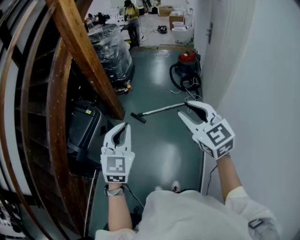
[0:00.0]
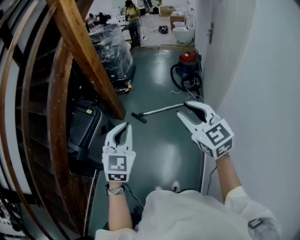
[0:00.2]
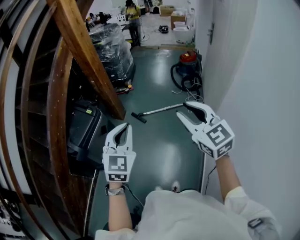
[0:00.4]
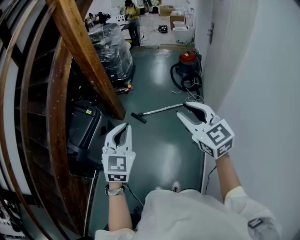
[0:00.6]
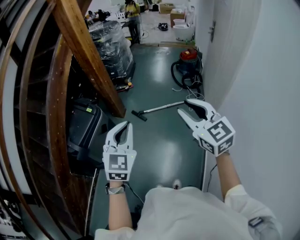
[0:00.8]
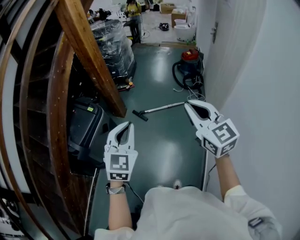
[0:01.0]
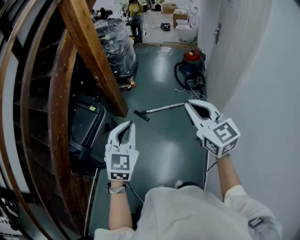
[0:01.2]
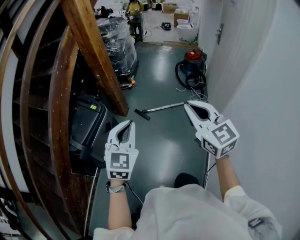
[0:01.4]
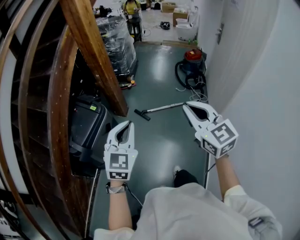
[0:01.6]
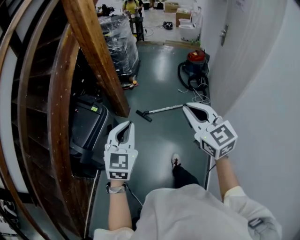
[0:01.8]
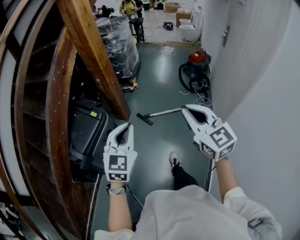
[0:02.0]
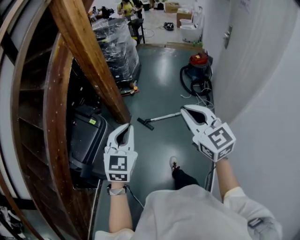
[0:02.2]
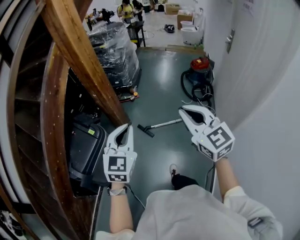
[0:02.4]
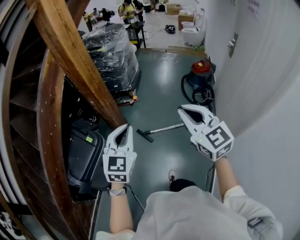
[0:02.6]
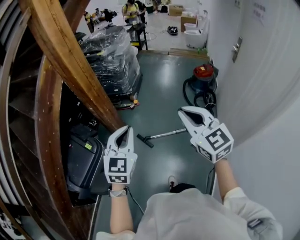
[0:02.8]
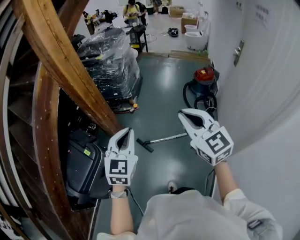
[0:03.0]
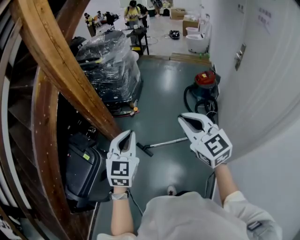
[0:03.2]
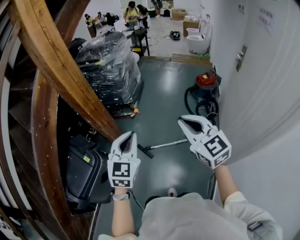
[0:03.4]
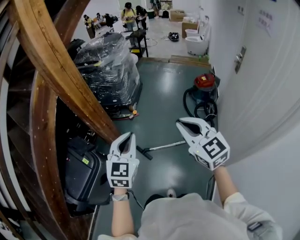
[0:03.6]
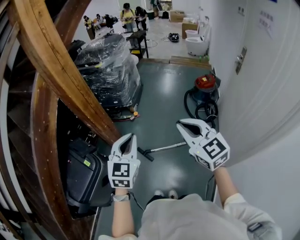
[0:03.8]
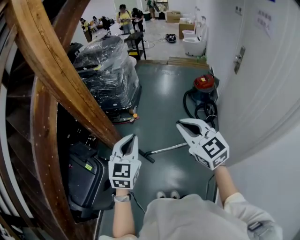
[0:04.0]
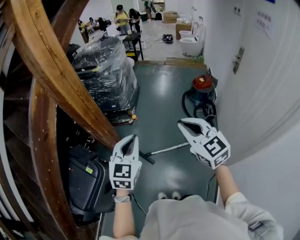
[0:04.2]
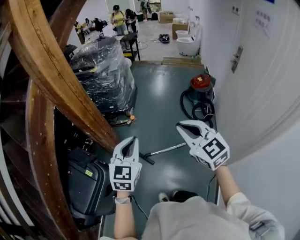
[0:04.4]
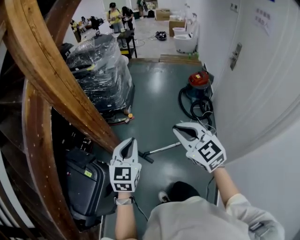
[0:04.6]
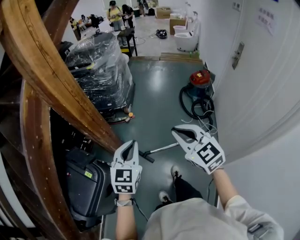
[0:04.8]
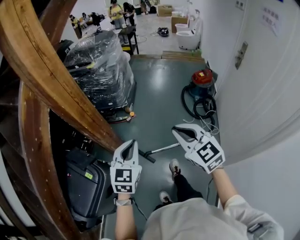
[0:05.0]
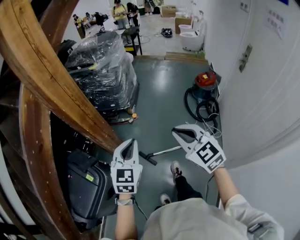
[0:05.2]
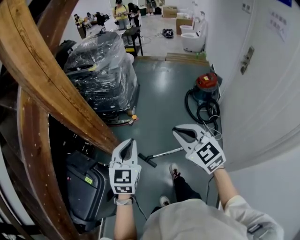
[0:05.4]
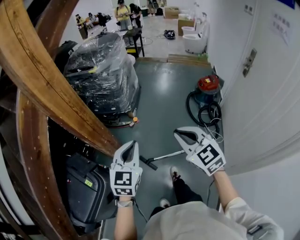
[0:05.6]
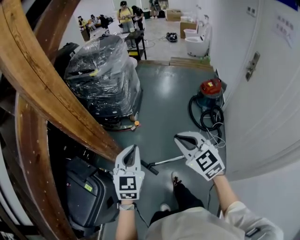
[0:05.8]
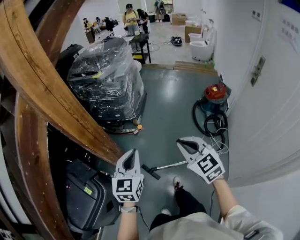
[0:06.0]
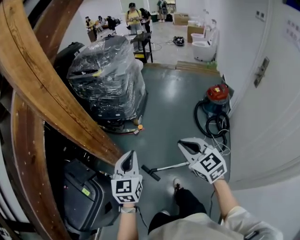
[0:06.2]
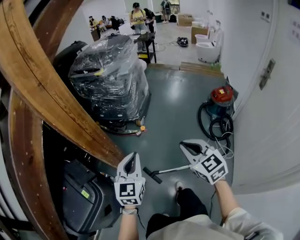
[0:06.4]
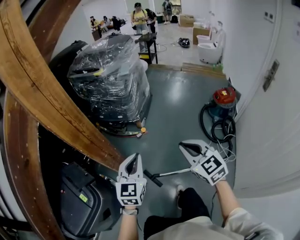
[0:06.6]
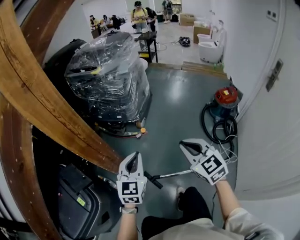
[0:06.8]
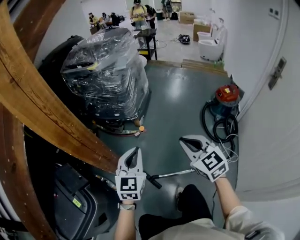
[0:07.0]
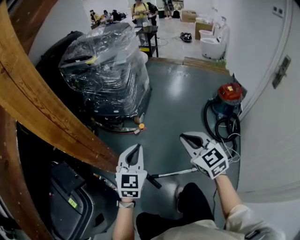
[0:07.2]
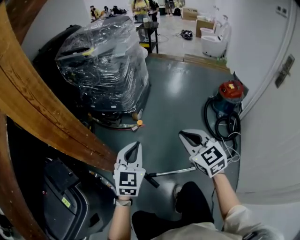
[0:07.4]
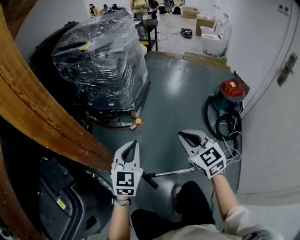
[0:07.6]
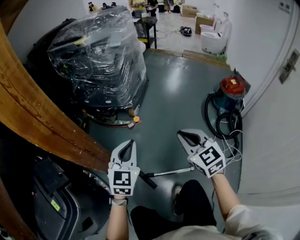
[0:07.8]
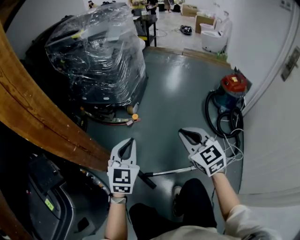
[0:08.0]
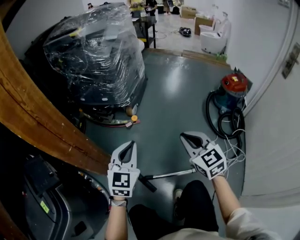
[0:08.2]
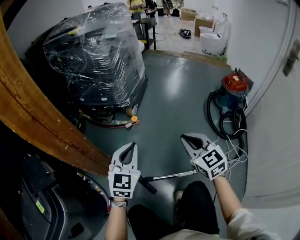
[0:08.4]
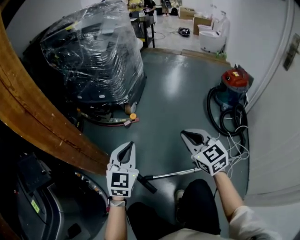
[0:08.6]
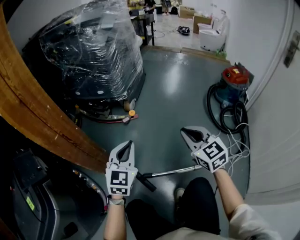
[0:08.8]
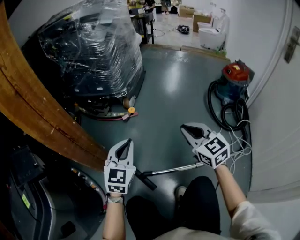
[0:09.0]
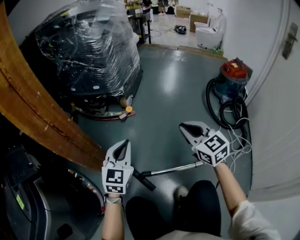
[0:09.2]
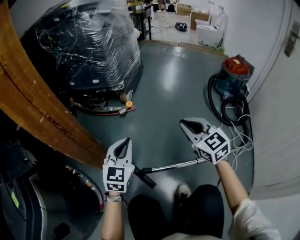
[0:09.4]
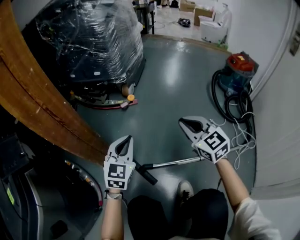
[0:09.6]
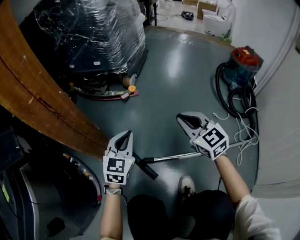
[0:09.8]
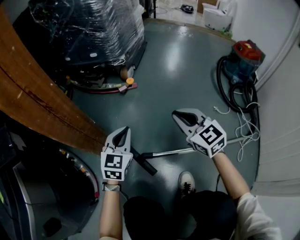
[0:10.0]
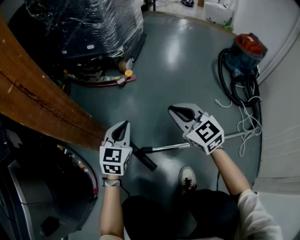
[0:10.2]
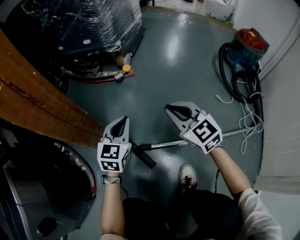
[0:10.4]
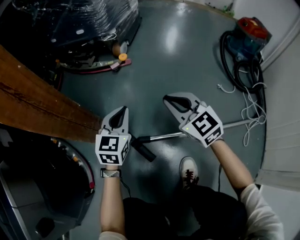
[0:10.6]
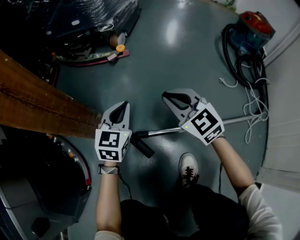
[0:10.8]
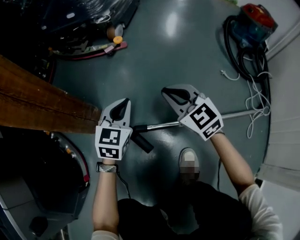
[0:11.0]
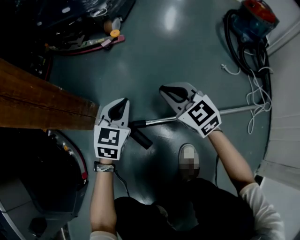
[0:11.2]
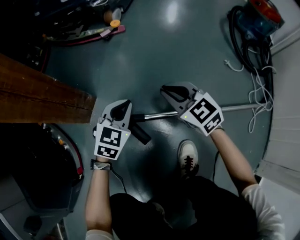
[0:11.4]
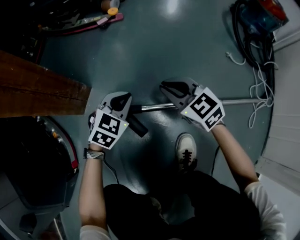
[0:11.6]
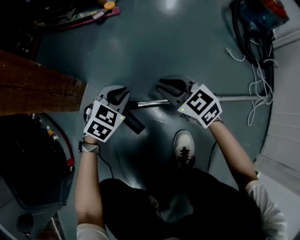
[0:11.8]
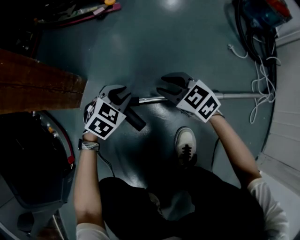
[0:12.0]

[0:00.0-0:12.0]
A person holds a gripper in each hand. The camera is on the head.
0.0 to 1.6 s: The grippers both shift to the left and forward by roughly 10 cm. The right gripper closes.
1.6 to 3.0 s: Both grippers move forward, roughly 35 cm.
3.0 to 4.4 s: Both grippers travel together forward, roughly 10 cm.
4.4 to 6.0 s: The two grippers go some 15 cm forward and downward.
6.0 to 7.6 s: Both grippers move downward and forward, about 30 cm.
7.6 to 9.0 s: The two grippers go about 25 cm downward.
9.0 to 10.4 s: The right gripper travels downward and to the left by about 20 cm. The left gripper moves downward, some 20 cm.
10.4 to 12.0 s: The two grippers go some 25 cm downward. The right gripper turns by roughly 30 degrees, and opens. Meanwhile the left gripper points its fingers some 30 degrees further downward.

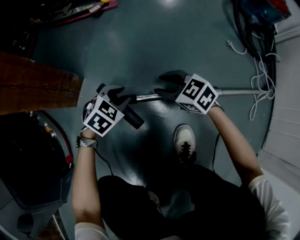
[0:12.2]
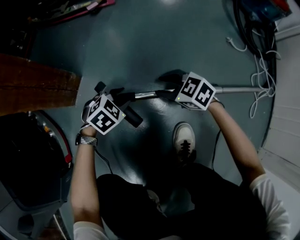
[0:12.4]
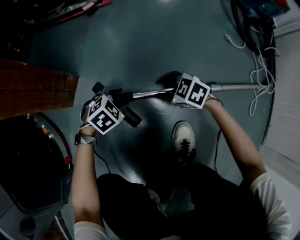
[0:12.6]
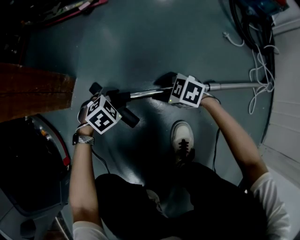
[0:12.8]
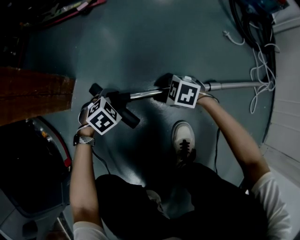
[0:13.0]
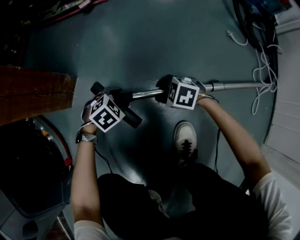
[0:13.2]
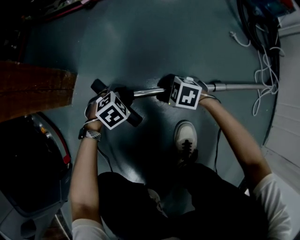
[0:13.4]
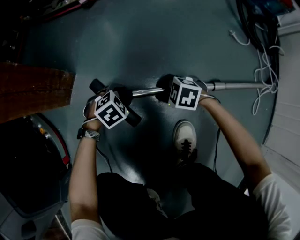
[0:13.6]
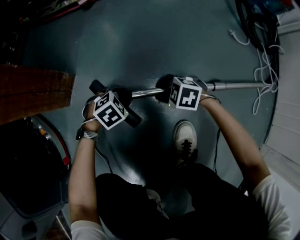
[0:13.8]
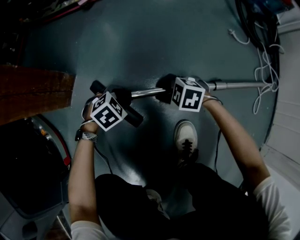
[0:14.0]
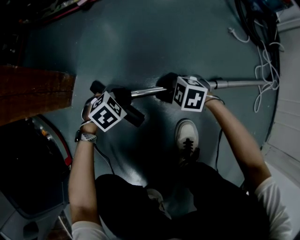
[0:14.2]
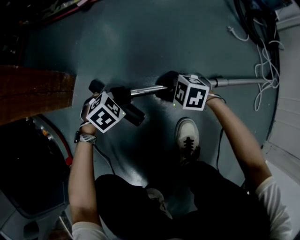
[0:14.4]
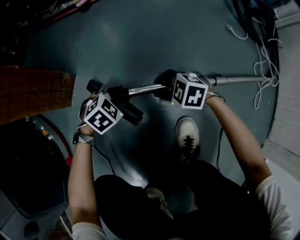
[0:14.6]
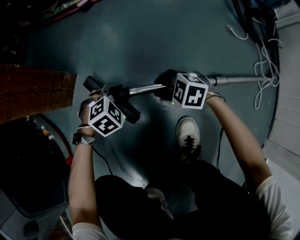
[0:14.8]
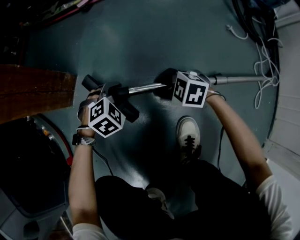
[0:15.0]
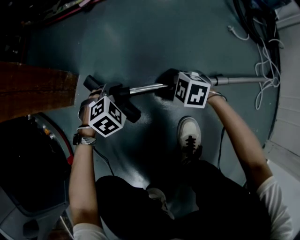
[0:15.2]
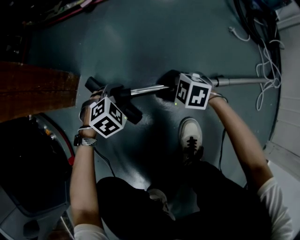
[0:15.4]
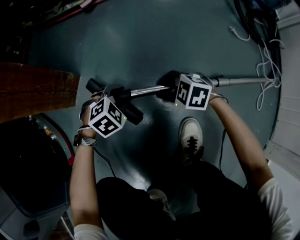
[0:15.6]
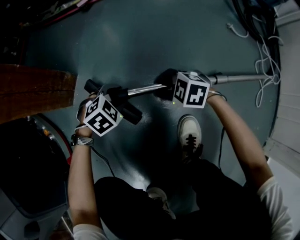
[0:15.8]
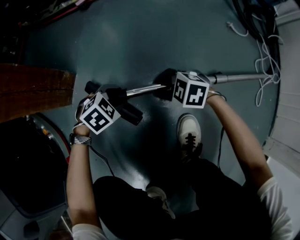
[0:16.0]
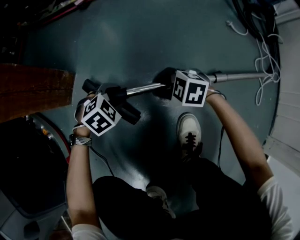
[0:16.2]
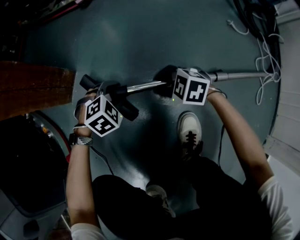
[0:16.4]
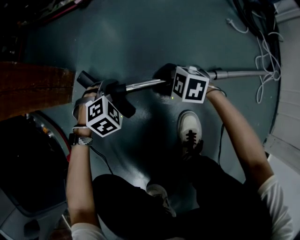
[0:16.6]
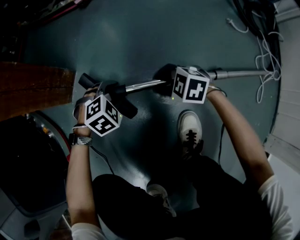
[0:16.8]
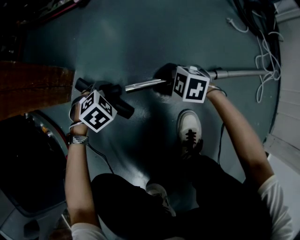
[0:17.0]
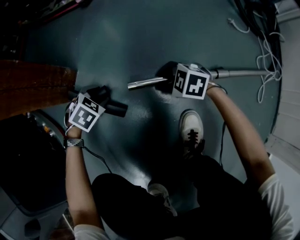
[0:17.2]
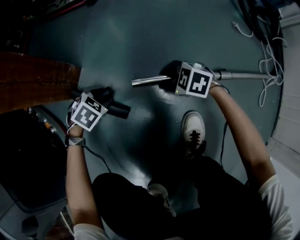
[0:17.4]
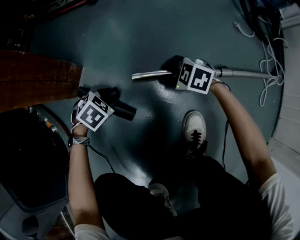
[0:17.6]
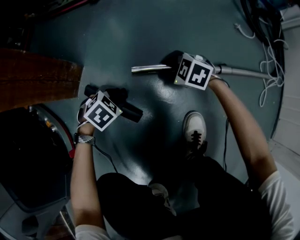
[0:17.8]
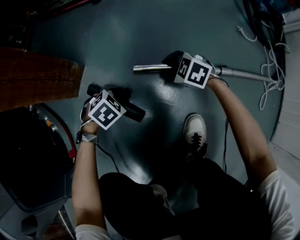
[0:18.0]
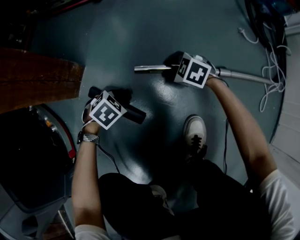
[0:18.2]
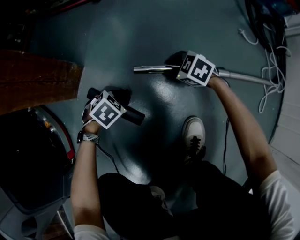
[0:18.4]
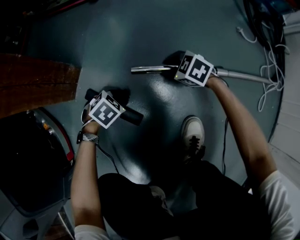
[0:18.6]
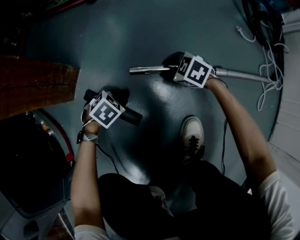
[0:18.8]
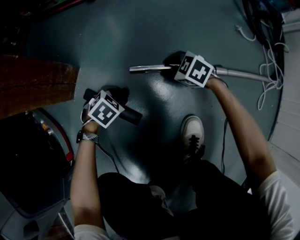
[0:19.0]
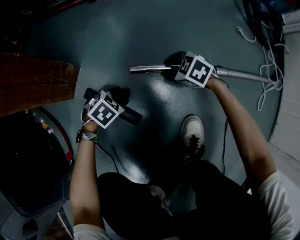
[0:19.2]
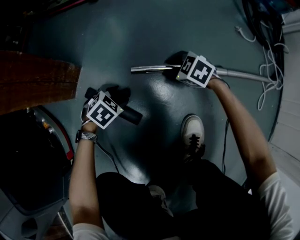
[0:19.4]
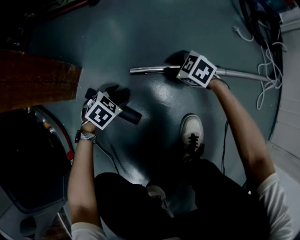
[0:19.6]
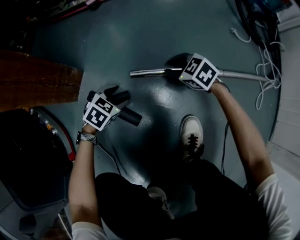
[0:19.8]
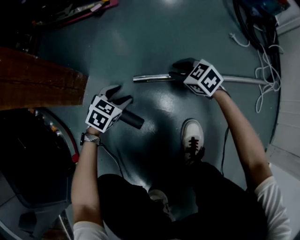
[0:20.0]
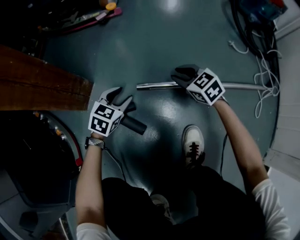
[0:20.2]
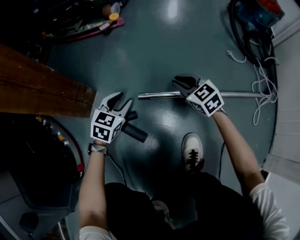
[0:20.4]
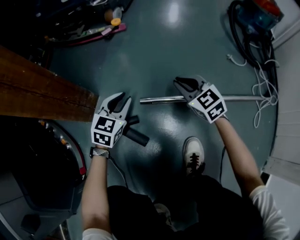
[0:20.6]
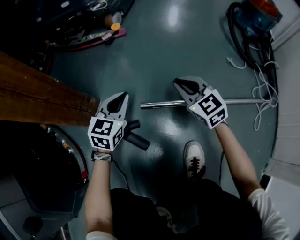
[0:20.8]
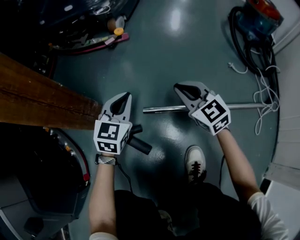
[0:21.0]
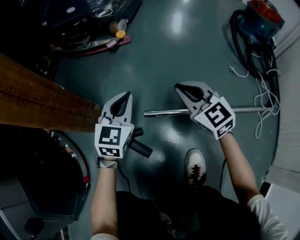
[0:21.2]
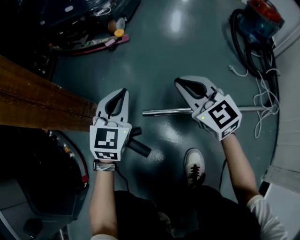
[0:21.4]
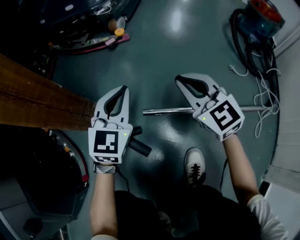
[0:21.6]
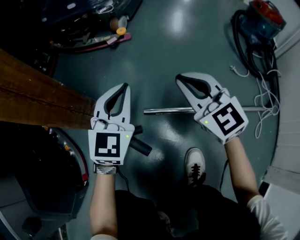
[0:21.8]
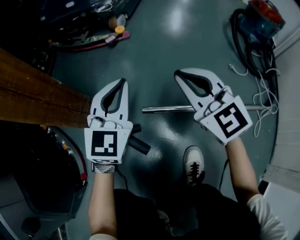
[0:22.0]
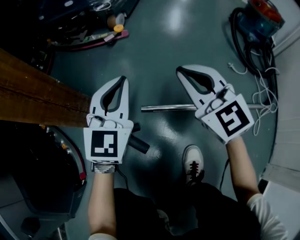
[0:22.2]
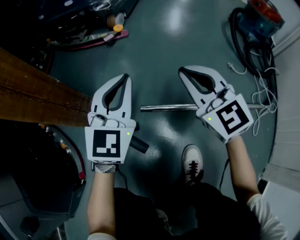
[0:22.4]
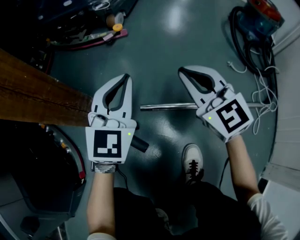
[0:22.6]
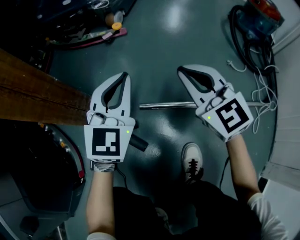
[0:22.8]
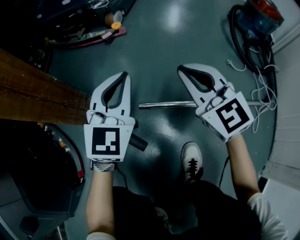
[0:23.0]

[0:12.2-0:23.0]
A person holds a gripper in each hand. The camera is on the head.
12.2 to 13.8 s: Both grippers travel together downward, about 10 cm. The right gripper swivels roughly 30 degrees.
13.8 to 15.2 s: The left gripper ends up about 5 cm from where it was.
15.2 to 16.8 s: The grippers stay close to where they were, moving slightly.
16.8 to 18.4 s: The left gripper swivels some 20 degrees; the right gripper shifts by some 10 cm.
18.4 to 20.0 s: The two grippers go about 5 cm upward. The left gripper swivels some 20 degrees.
20.0 to 21.4 s: The two grippers go about 25 cm upward. The right gripper points its fingers roughly 30 degrees further upward, and closes up; the left gripper points its fingers approximately 40 degrees further upward, and closes its fingers.
21.4 to 23.0 s: The left gripper travels upward by roughly 5 cm. The right gripper changes place by some 5 cm.

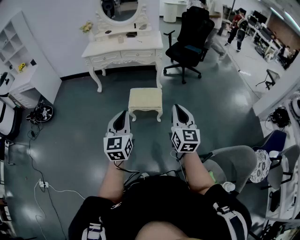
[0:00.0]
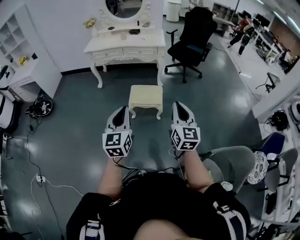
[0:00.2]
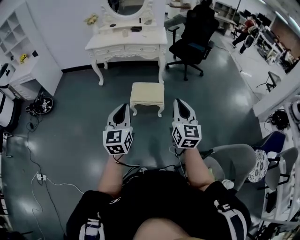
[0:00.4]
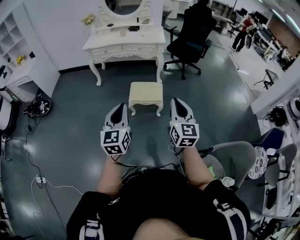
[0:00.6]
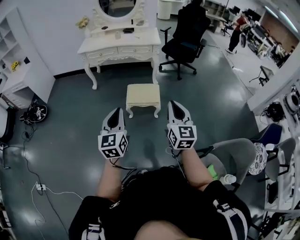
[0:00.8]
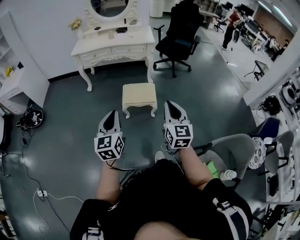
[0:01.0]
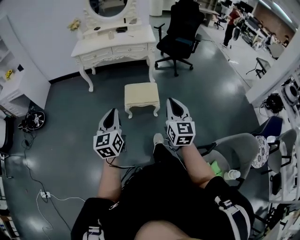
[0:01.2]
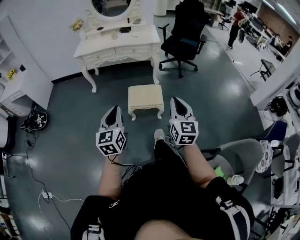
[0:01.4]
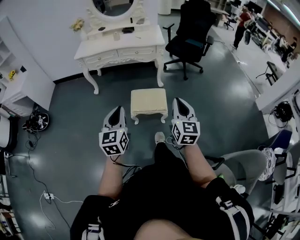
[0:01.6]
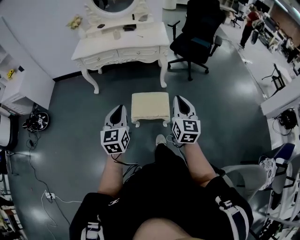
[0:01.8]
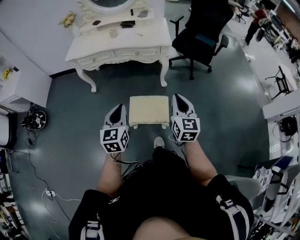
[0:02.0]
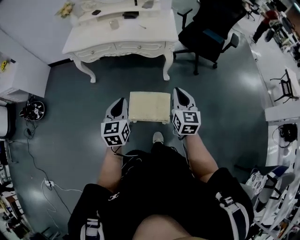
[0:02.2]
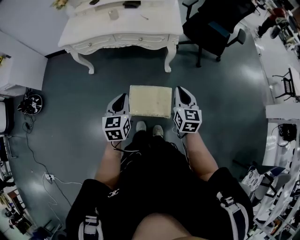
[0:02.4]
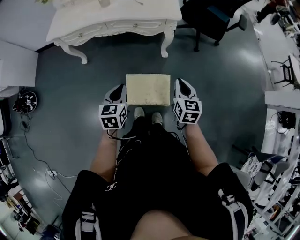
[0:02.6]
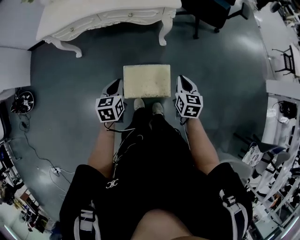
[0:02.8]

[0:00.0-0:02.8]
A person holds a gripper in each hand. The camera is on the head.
0.0 to 1.4 s: The right gripper is displaced forward and to the left by about 10 cm. Meanwhile the left gripper is displaced to the left and forward by approximately 15 cm.
1.4 to 2.8 s: The pair of grippers is taken forward, roughly 50 cm. The grippers both shift downward by some 25 cm. The left gripper tips its fingers downward by some 30 degrees. Meanwhile the right gripper angles its fingers downward, by approximately 30 degrees.
